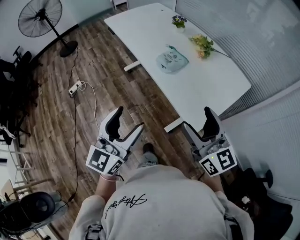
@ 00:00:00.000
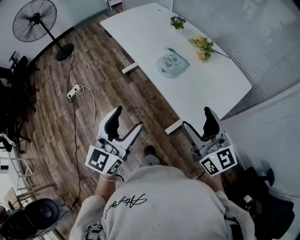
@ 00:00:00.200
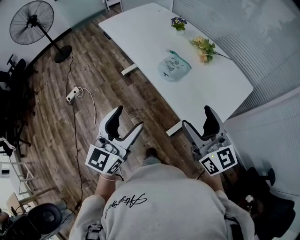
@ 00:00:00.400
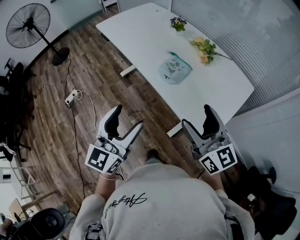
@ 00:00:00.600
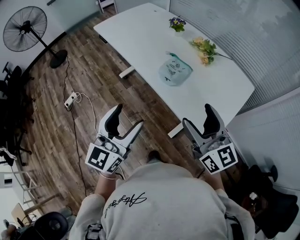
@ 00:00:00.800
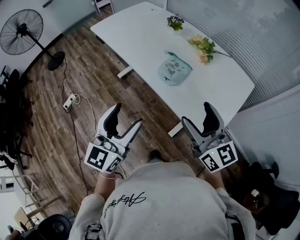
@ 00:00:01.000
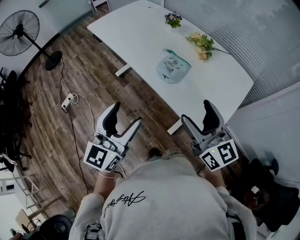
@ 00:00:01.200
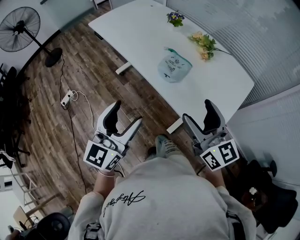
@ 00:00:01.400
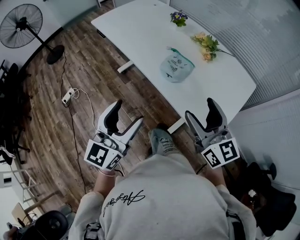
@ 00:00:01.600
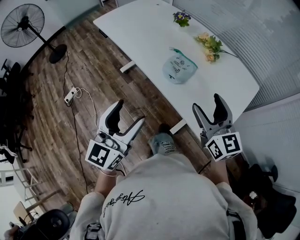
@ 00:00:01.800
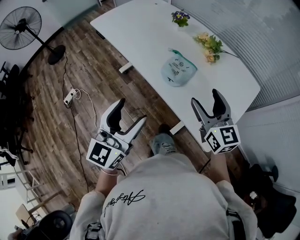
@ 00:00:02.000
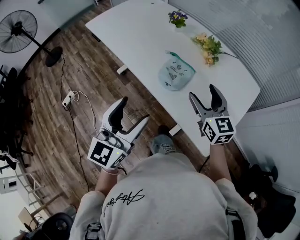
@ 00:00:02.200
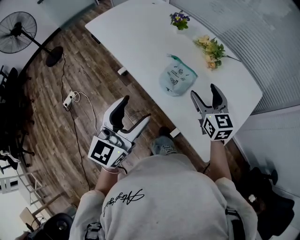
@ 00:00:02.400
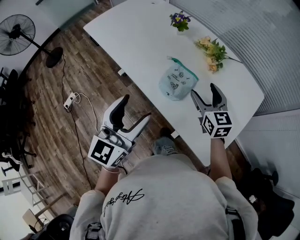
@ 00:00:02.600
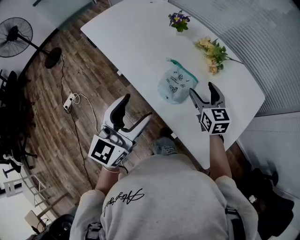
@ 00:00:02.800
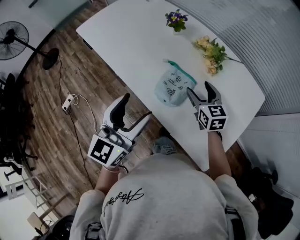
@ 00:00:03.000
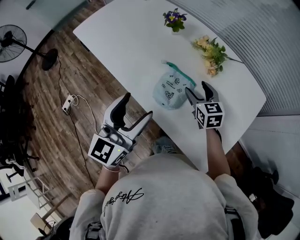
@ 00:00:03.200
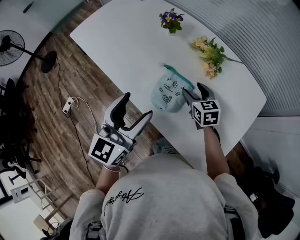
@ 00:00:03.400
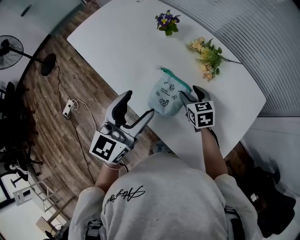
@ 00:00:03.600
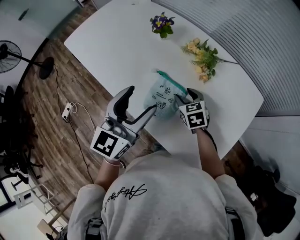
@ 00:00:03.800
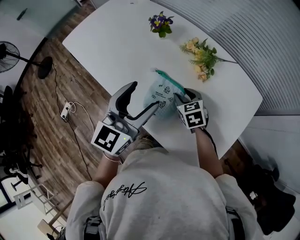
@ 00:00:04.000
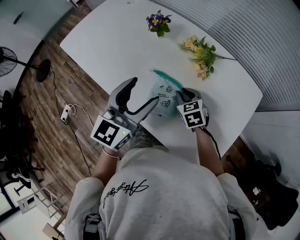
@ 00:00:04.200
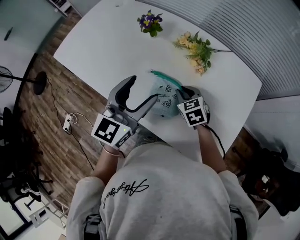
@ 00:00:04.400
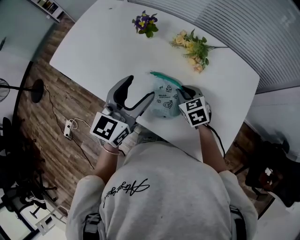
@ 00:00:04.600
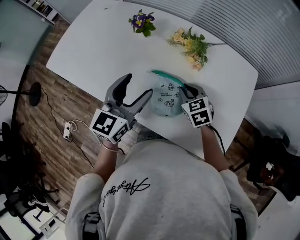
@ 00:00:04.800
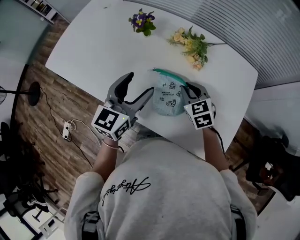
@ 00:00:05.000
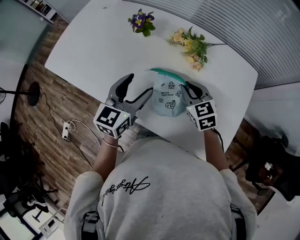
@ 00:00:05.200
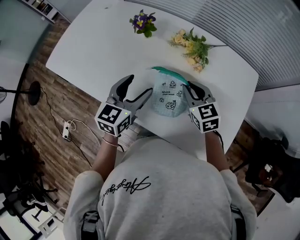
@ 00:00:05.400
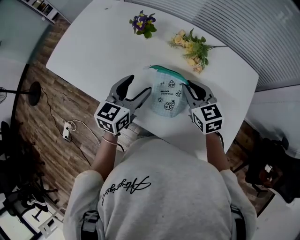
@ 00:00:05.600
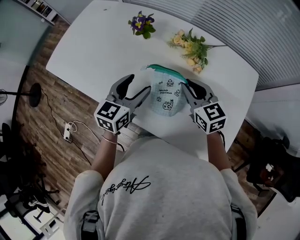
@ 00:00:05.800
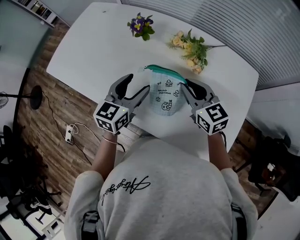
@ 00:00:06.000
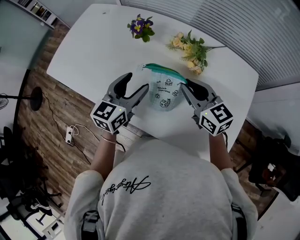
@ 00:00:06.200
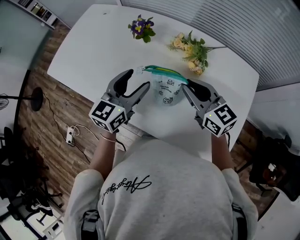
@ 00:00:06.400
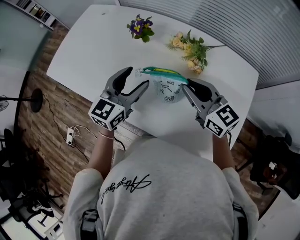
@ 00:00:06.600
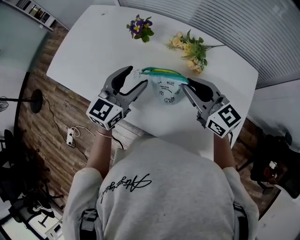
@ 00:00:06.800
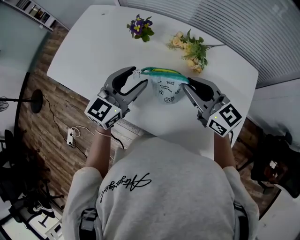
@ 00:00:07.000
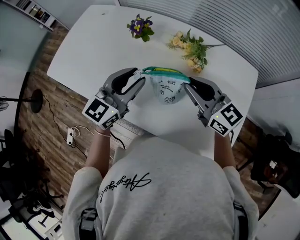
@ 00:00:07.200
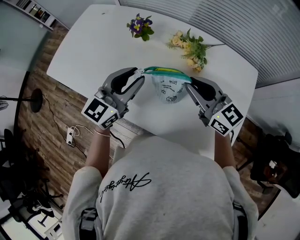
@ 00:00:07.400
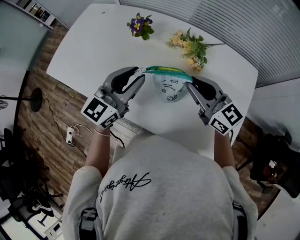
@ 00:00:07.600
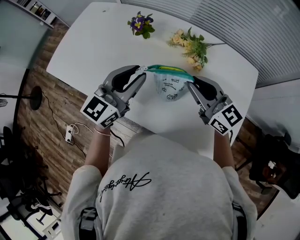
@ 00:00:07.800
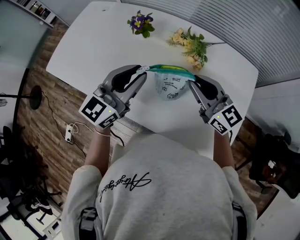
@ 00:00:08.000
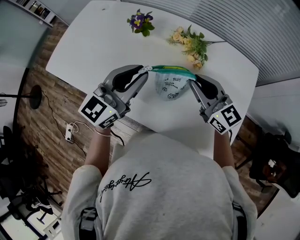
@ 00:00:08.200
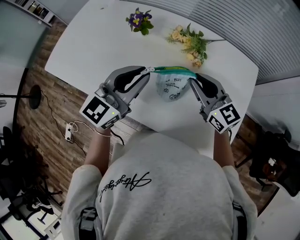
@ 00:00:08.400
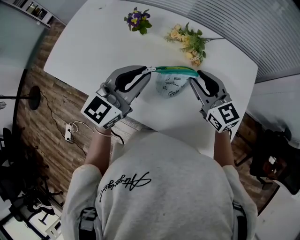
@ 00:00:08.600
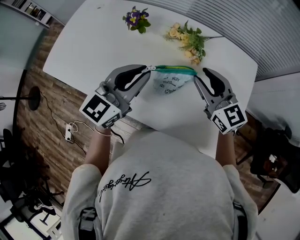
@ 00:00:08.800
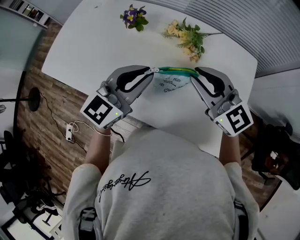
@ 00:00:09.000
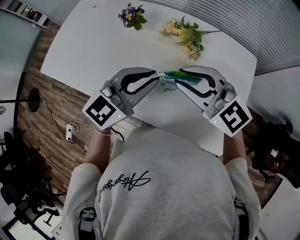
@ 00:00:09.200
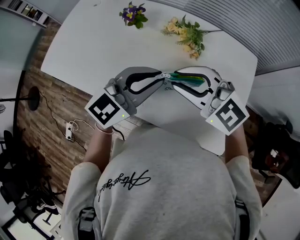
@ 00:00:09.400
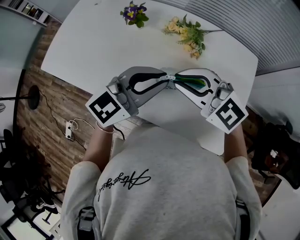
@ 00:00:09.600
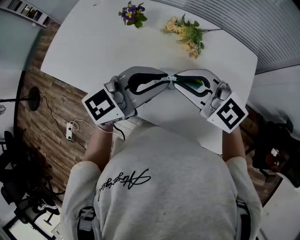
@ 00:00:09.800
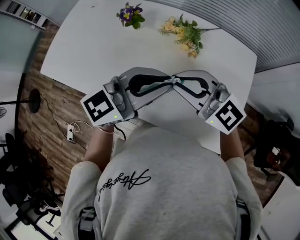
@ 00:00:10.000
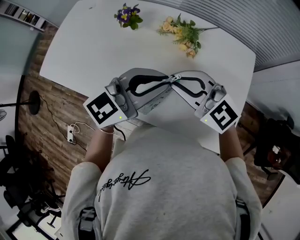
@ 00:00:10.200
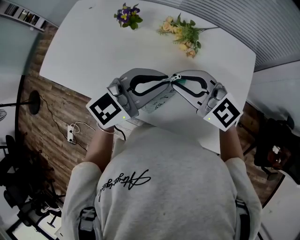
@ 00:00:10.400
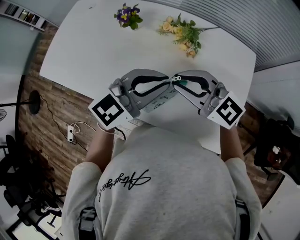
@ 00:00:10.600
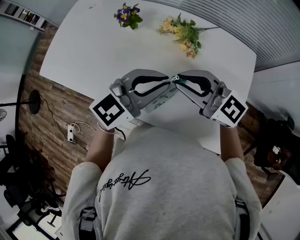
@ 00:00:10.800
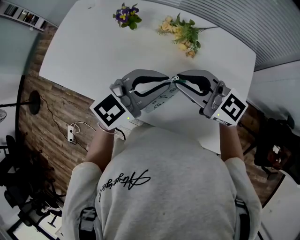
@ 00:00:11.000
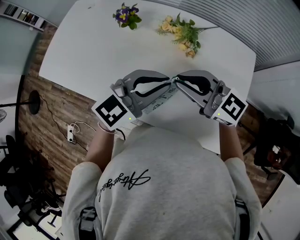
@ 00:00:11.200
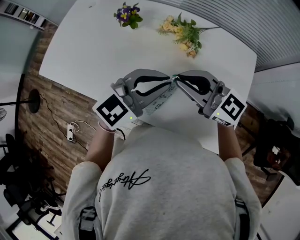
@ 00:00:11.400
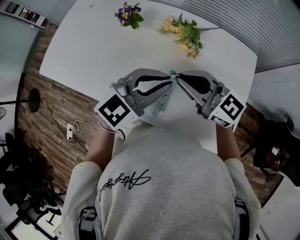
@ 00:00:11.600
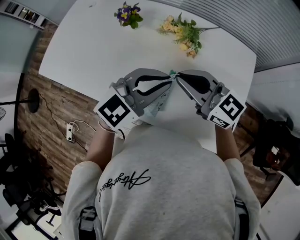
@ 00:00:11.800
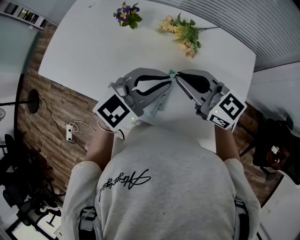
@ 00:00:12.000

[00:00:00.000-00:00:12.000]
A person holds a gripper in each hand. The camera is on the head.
00:00:00.000 to 00:00:01.600: Both grippers move forward and to the left, about 15 cm.
00:00:01.600 to 00:00:03.000: The left gripper is displaced forward by about 20 cm. Meanwhile the right gripper is displaced forward and downward by roughly 30 cm, and turns by approximately 30 degrees.
00:00:03.000 to 00:00:04.400: The right gripper heads downward, covering approximately 5 cm, changes its angle by some 20 degrees, and closes up. The left gripper shifts roughly 15 cm forward.
00:00:04.400 to 00:00:06.000: The right gripper goes roughly 10 cm upward, and swivels approximately 30 degrees. The left gripper heads downward and forward, covering roughly 10 cm.
00:00:06.000 to 00:00:07.600: The two grippers go approximately 5 cm upward. The left gripper swivels some 20 degrees, and closes.
00:00:07.600 to 00:00:09.000: The left gripper shifts by some 5 cm.
00:00:09.000 to 00:00:10.400: The left gripper ends up roughly 5 cm from where it was. Meanwhile the right gripper shifts by some 5 cm.
00:00:10.400 to 00:00:12.000: The grippers move only a little.

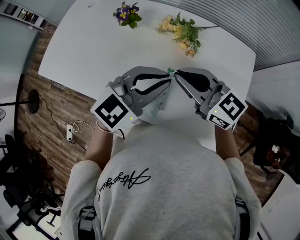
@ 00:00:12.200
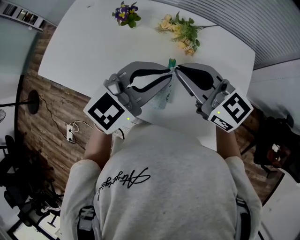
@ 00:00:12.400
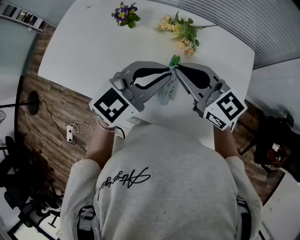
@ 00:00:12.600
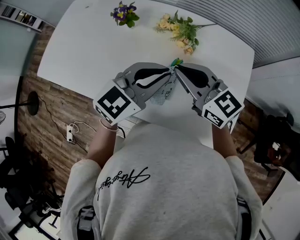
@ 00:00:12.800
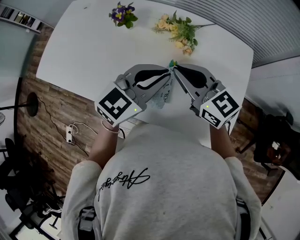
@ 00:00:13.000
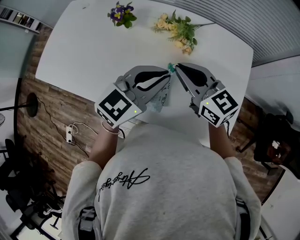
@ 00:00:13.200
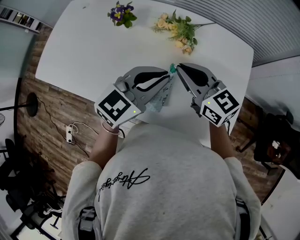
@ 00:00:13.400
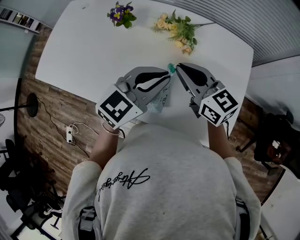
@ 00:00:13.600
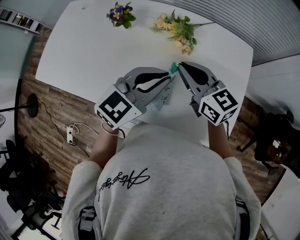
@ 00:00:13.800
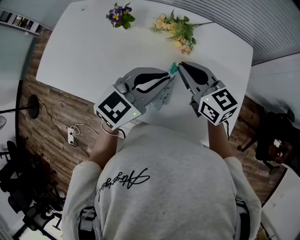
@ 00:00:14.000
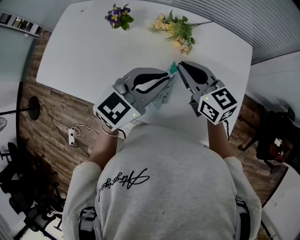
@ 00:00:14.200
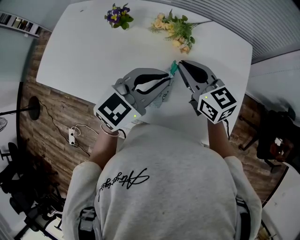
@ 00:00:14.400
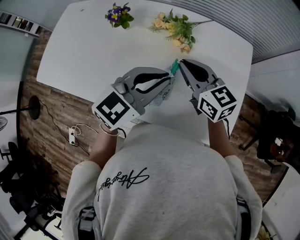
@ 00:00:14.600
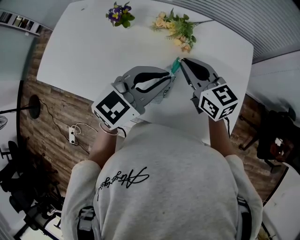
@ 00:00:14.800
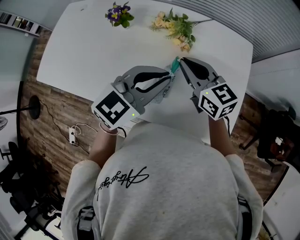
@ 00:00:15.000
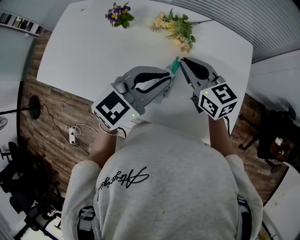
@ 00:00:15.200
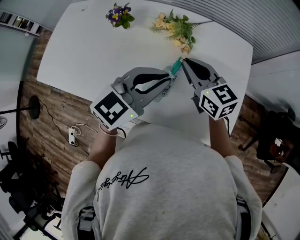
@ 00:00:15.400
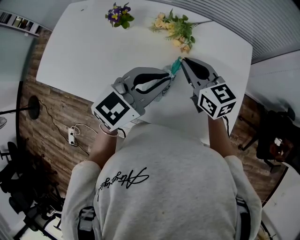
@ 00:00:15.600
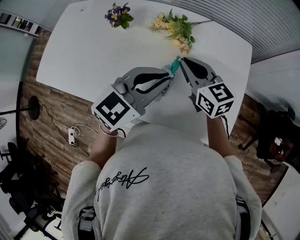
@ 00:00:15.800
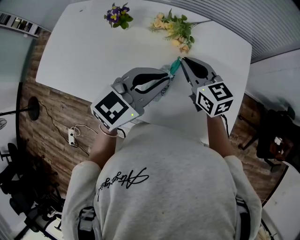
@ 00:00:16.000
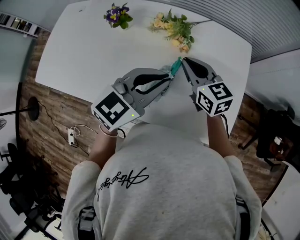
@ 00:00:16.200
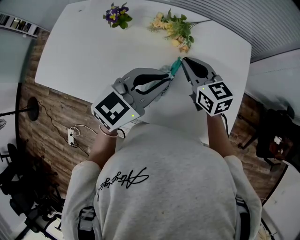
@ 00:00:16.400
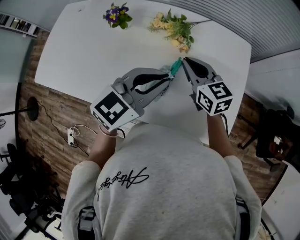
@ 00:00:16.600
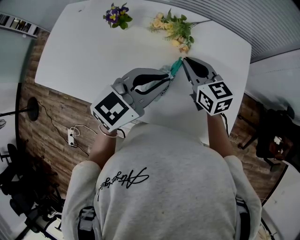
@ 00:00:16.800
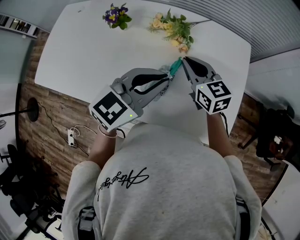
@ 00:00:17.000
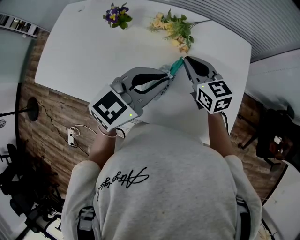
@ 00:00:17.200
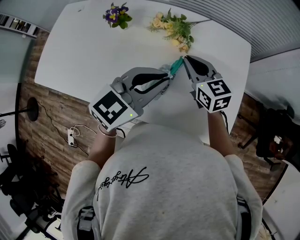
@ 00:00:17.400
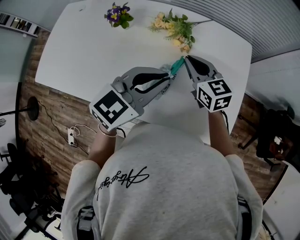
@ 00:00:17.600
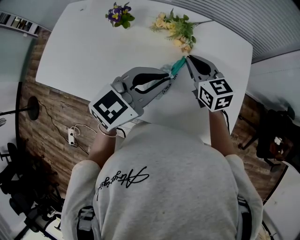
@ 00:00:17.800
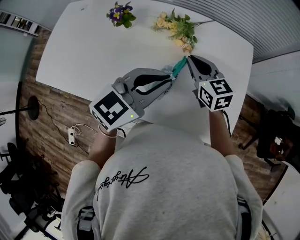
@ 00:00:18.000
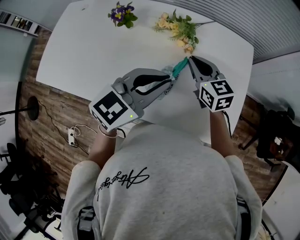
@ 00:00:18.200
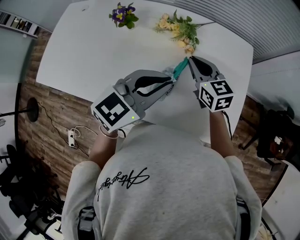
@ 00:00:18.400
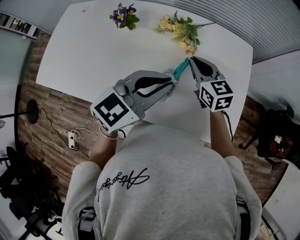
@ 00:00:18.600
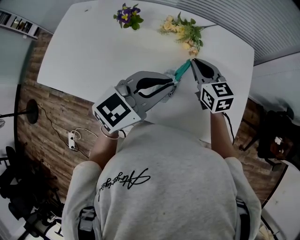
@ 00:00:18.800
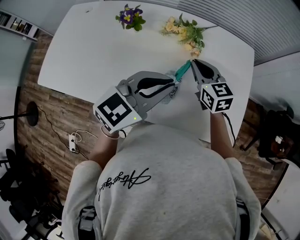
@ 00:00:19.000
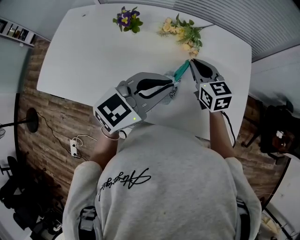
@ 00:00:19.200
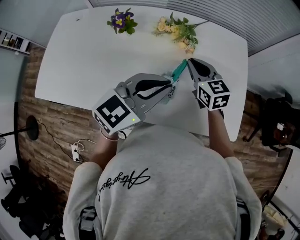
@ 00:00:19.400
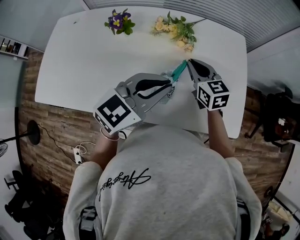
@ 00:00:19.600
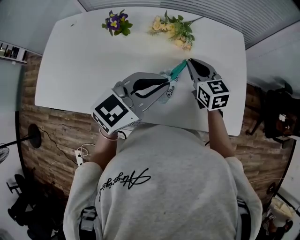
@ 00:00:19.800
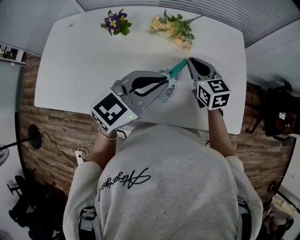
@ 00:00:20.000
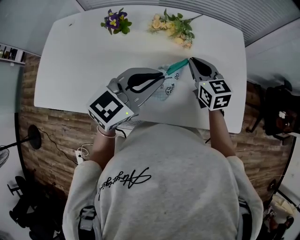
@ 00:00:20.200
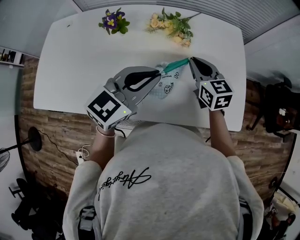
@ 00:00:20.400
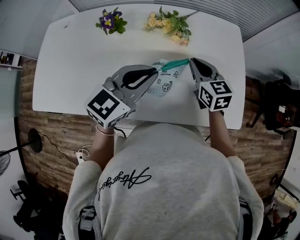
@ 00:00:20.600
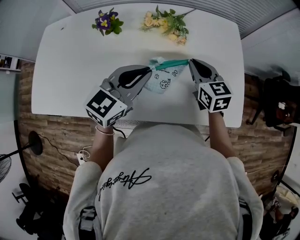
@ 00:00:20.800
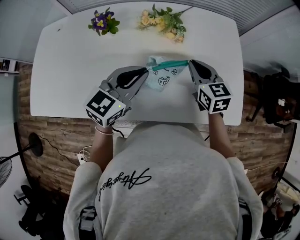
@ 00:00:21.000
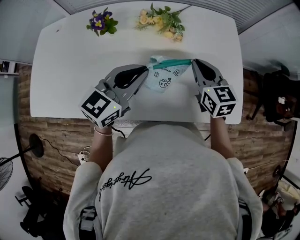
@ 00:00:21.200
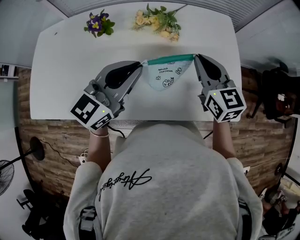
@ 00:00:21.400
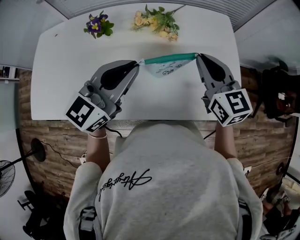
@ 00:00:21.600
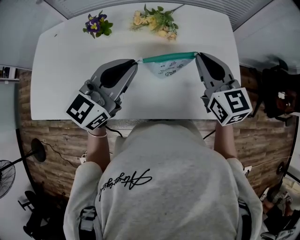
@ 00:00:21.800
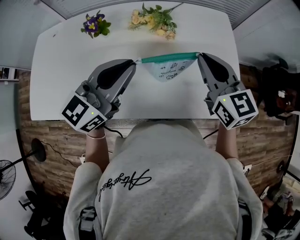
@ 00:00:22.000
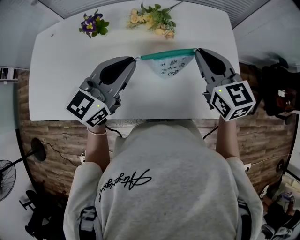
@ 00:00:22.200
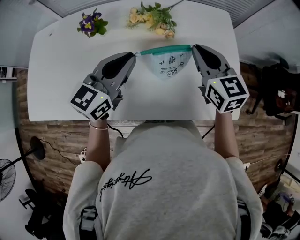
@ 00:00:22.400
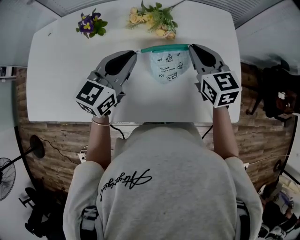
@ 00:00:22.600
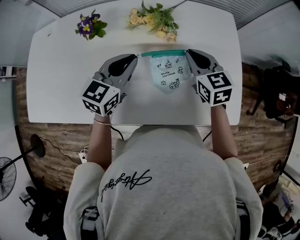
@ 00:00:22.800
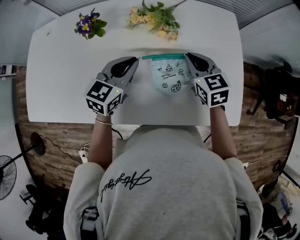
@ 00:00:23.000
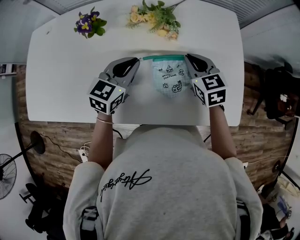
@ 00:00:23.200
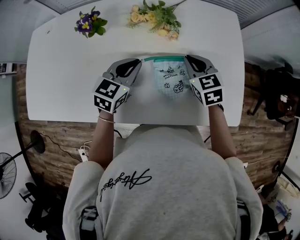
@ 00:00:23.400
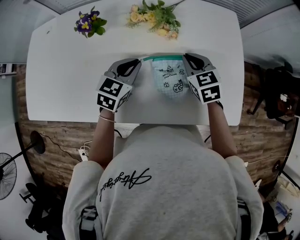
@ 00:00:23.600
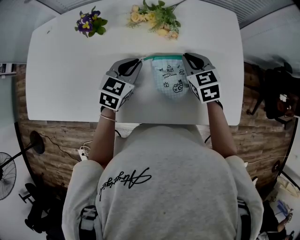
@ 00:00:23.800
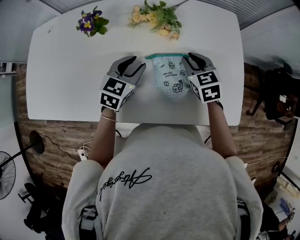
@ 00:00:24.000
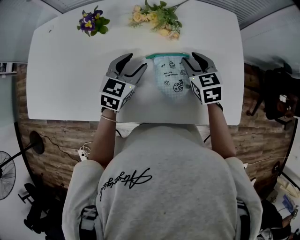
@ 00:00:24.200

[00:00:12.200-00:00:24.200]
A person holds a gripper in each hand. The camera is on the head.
00:00:12.200 to 00:00:13.800: The right gripper ends up some 5 cm from where it was, and swivels about 20 degrees.
00:00:13.800 to 00:00:16.600: The grippers move only a little.
00:00:16.600 to 00:00:19.800: There are only small adjustments of the grippers.
00:00:19.800 to 00:00:21.200: The right gripper moves about 5 cm, while the left gripper ends up some 5 cm from where it was.
00:00:21.200 to 00:00:22.600: The right gripper goes upward and returns, some 10 cm each way. Meanwhile the left gripper goes roughly 5 cm forward, and travels upward and back again, approximately 5 cm each way.
00:00:22.600 to 00:00:24.200: Both grippers travel together downward, some 10 cm. The left gripper opens its fingers.
